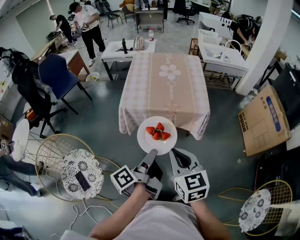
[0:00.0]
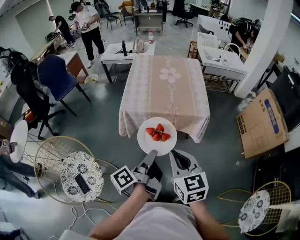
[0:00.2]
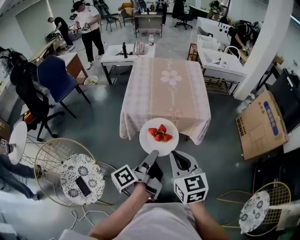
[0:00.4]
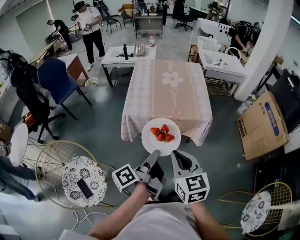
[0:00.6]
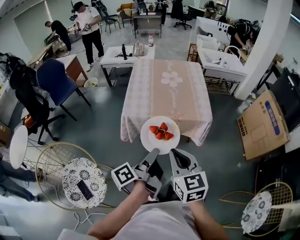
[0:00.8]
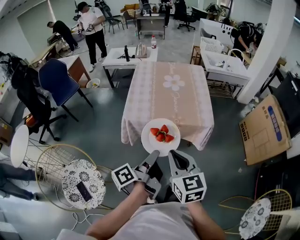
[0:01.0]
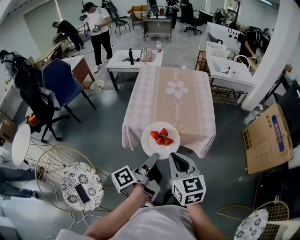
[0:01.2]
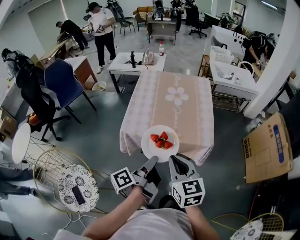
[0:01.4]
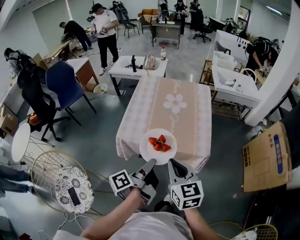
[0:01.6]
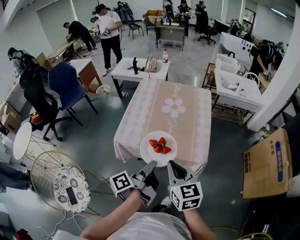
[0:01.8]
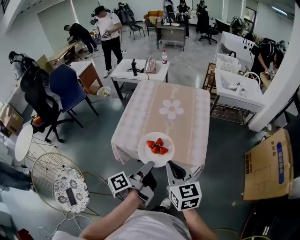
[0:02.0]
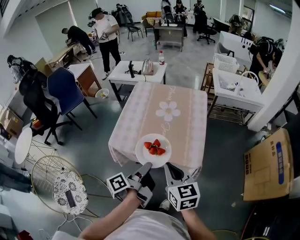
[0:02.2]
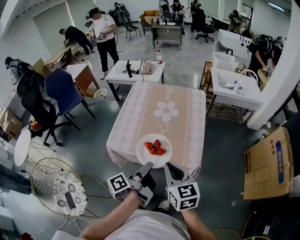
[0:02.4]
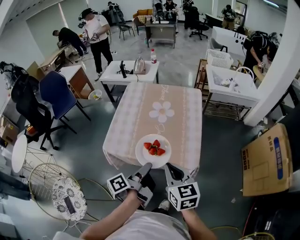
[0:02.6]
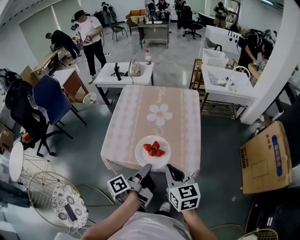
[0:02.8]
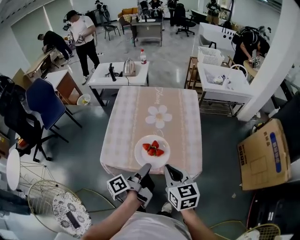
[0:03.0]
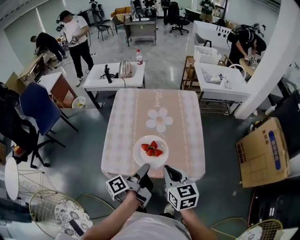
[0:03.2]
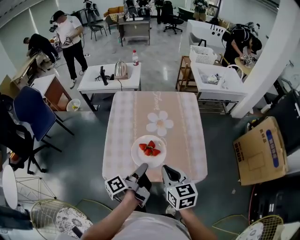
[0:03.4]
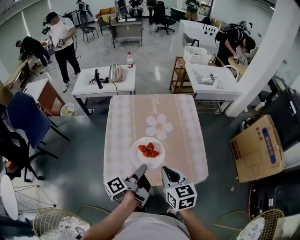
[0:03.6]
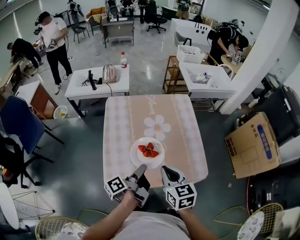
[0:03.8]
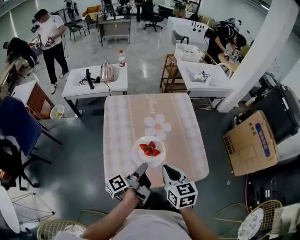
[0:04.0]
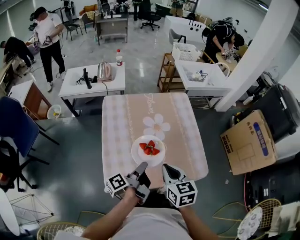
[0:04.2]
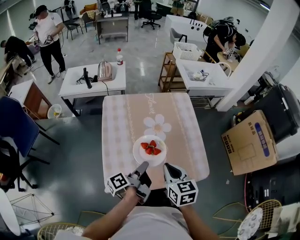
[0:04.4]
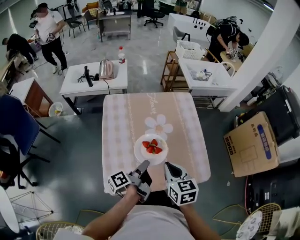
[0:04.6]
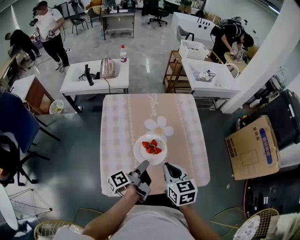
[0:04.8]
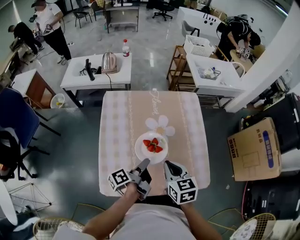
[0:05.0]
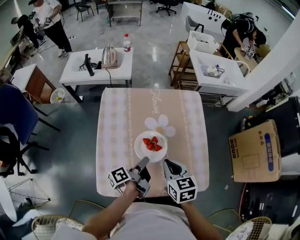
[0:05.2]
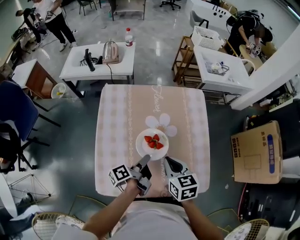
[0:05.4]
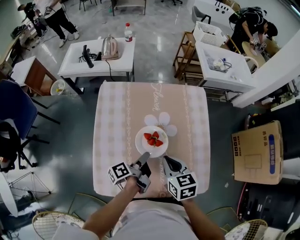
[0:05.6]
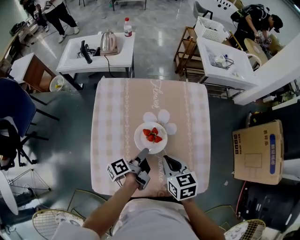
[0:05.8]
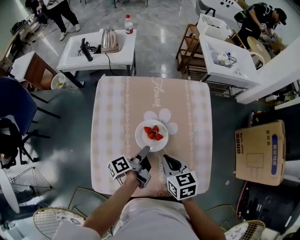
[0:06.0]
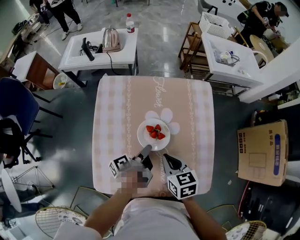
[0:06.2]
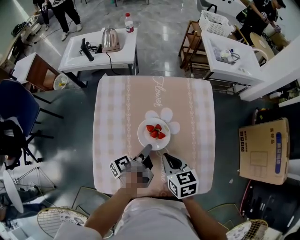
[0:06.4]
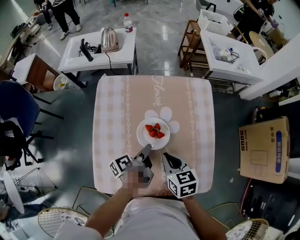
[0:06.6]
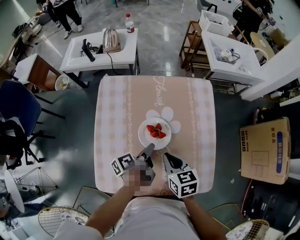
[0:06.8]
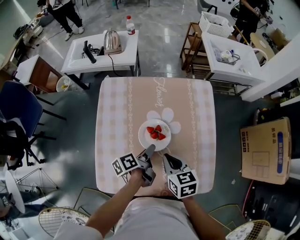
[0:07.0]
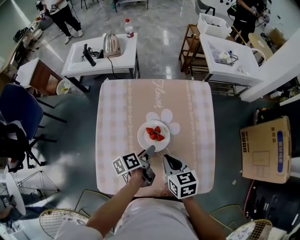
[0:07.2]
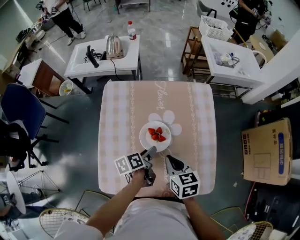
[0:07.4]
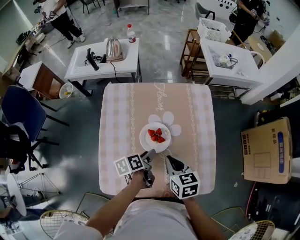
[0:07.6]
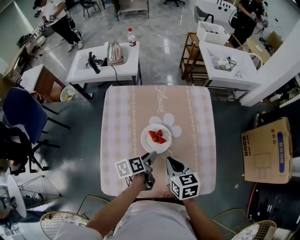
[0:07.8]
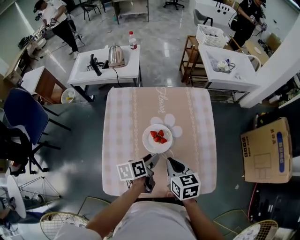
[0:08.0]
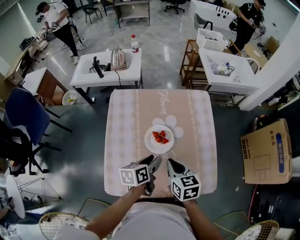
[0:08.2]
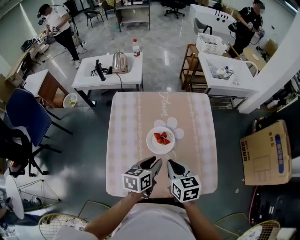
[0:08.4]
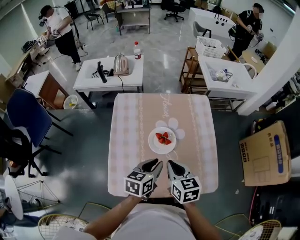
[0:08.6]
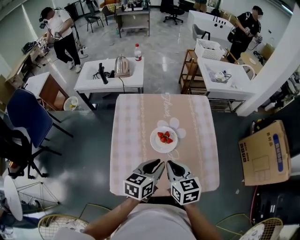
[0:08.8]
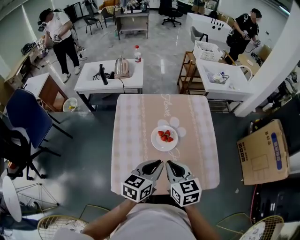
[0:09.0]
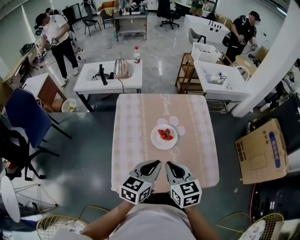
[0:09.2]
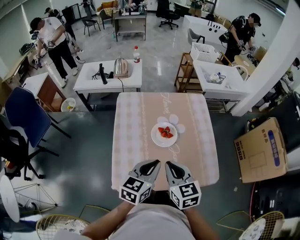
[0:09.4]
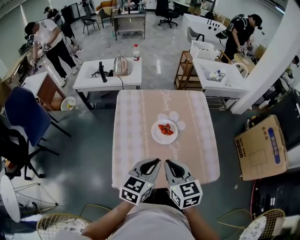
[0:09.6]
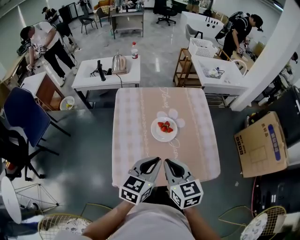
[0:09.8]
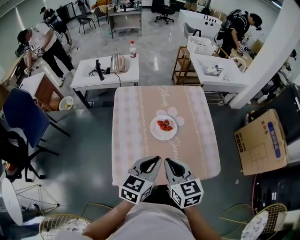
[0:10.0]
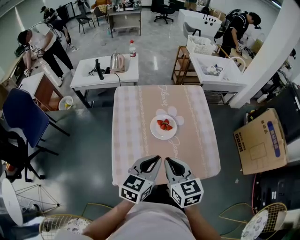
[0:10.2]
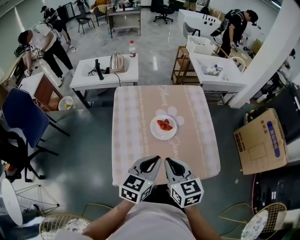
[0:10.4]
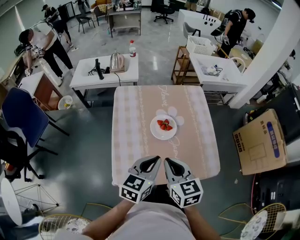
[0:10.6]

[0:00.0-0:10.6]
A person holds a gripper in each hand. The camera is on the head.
0.0 to 1.6 s: The right gripper moves about 20 cm.
1.6 to 3.0 s: The right gripper moves some 15 cm.
3.0 to 4.6 s: The right gripper shifts by approximately 15 cm.
4.6 to 6.0 s: The right gripper shifts by approximately 15 cm.
7.6 to 9.0 s: The right gripper changes place by roughly 10 cm.
9.0 to 10.6 s: The right gripper moves some 5 cm.

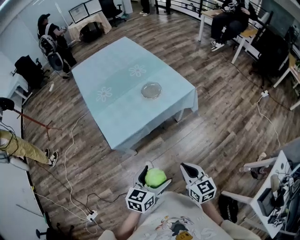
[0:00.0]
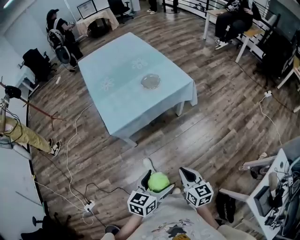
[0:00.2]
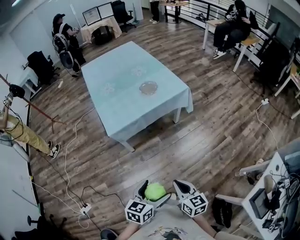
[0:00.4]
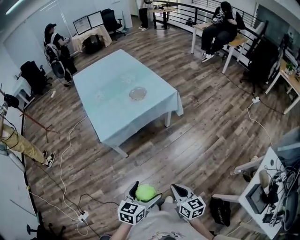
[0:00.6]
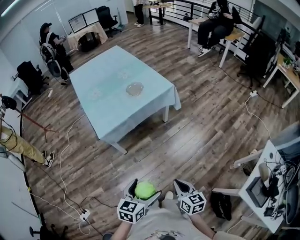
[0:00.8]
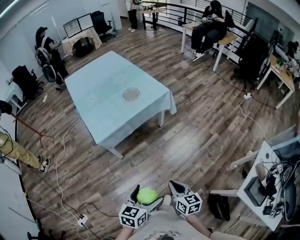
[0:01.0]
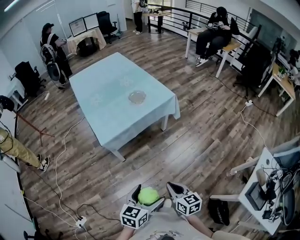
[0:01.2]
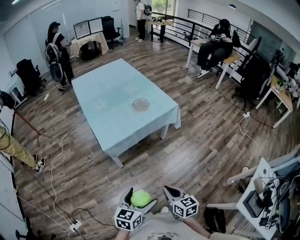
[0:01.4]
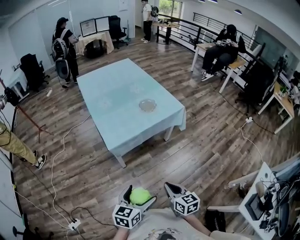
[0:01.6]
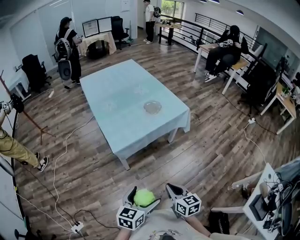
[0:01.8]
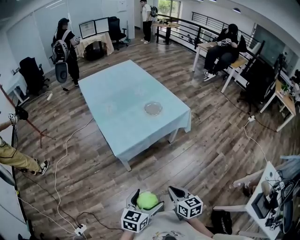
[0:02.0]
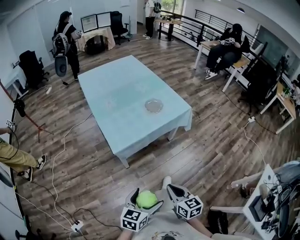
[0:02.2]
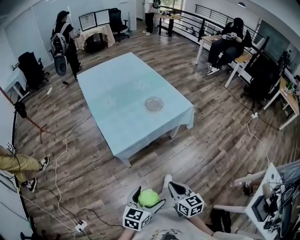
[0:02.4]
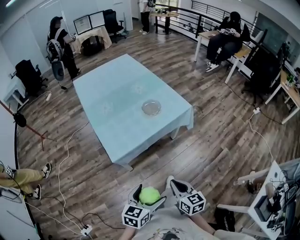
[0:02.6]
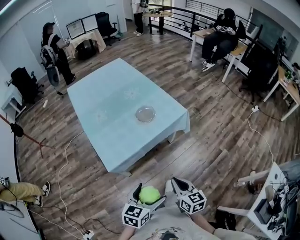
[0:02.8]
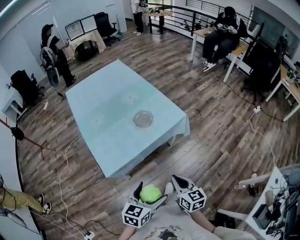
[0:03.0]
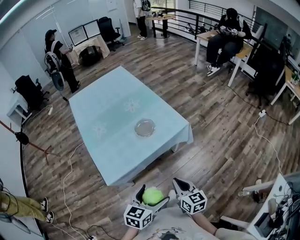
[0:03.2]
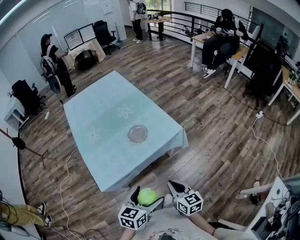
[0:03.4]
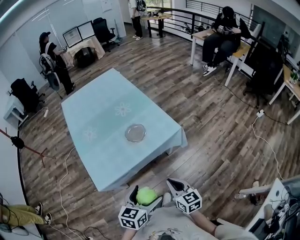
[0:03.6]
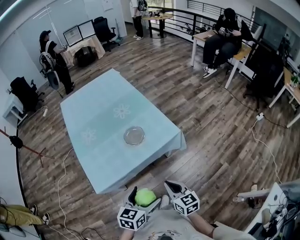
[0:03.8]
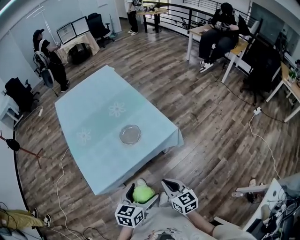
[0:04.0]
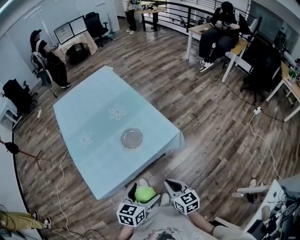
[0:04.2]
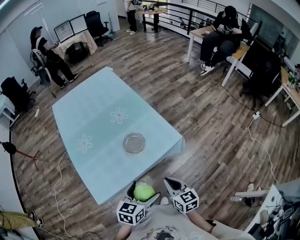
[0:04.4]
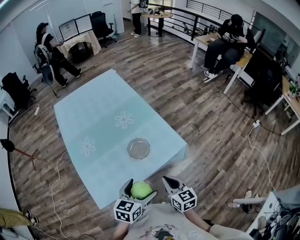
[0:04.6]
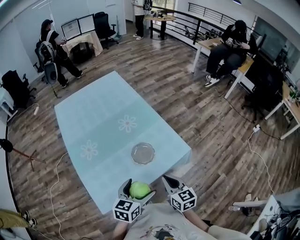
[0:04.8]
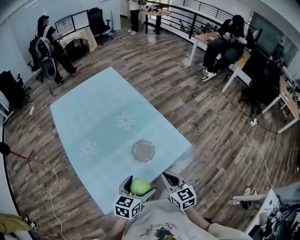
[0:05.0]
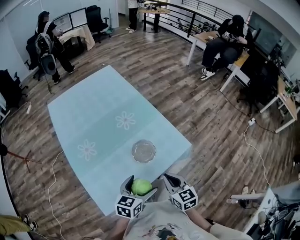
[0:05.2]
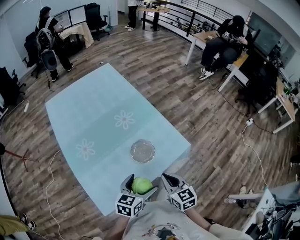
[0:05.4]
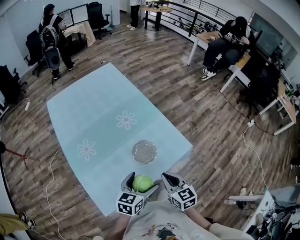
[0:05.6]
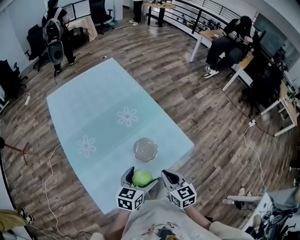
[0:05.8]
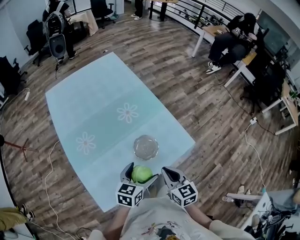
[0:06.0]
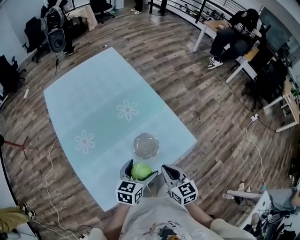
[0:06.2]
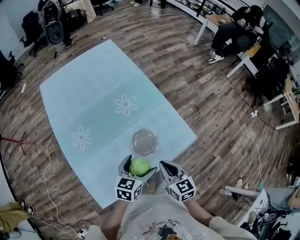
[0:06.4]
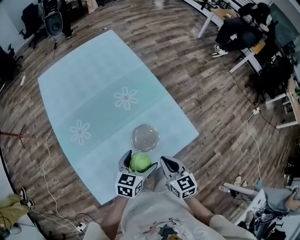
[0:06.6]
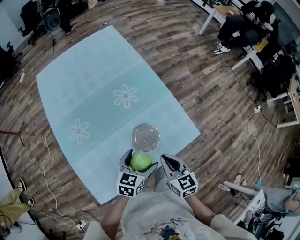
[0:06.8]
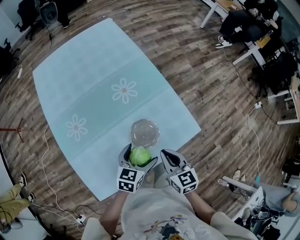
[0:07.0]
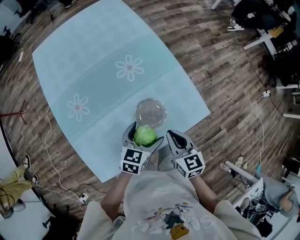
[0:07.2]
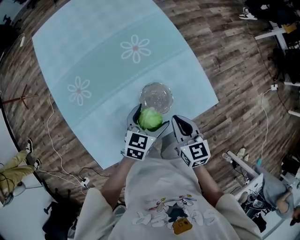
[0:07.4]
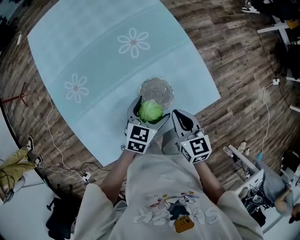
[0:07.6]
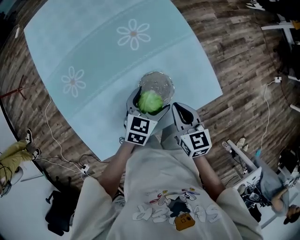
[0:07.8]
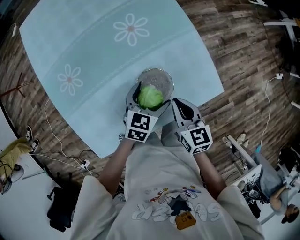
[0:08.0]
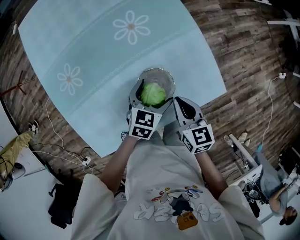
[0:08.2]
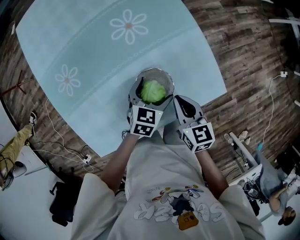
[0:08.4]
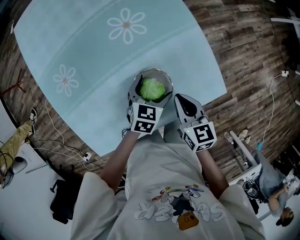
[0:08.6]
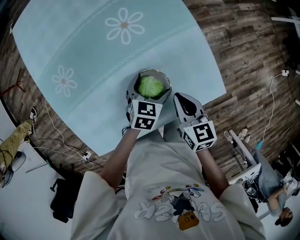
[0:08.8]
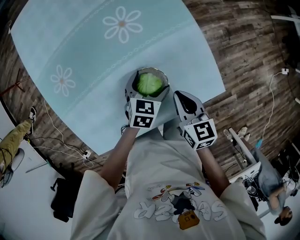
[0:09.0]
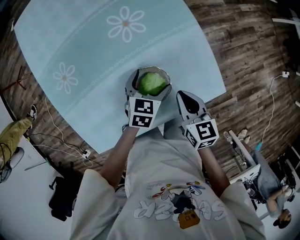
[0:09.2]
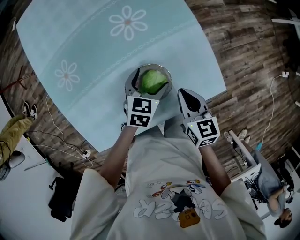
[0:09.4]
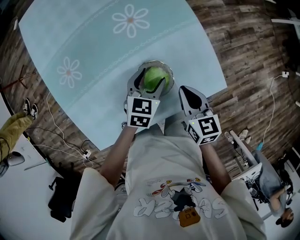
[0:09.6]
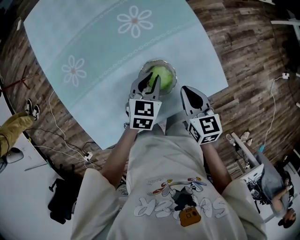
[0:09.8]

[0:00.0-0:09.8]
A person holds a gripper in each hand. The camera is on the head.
0.0 to 1.4 s: The grippers both shift backward by some 15 cm.
1.4 to 2.8 s: Both grippers travel together forward, about 20 cm.
2.8 to 4.2 s: The two grippers go about 20 cm forward.
4.2 to 5.6 s: Both grippers travel together forward and to the left, about 20 cm.
5.6 to 7.0 s: The two grippers go approximately 10 cm forward and downward.
7.0 to 8.4 s: Both grippers travel together downward and forward, some 15 cm.
8.4 to 9.8 s: The left gripper ends up about 5 cm from where it was, and closes up.

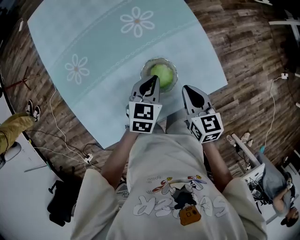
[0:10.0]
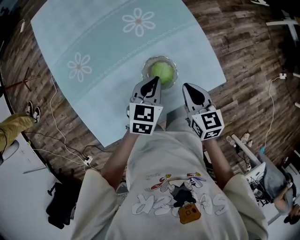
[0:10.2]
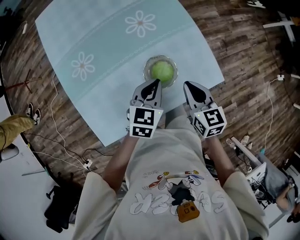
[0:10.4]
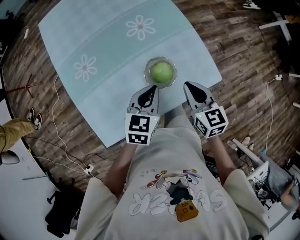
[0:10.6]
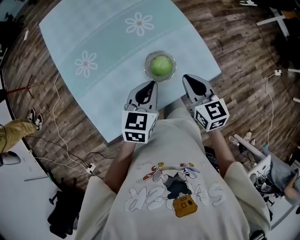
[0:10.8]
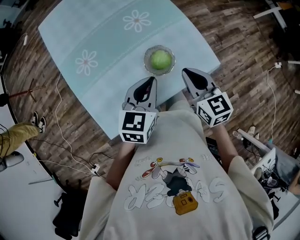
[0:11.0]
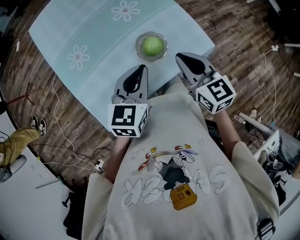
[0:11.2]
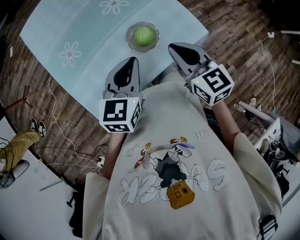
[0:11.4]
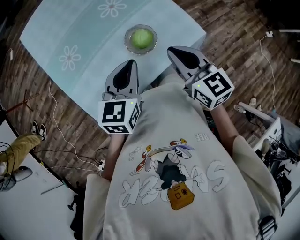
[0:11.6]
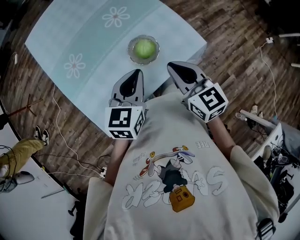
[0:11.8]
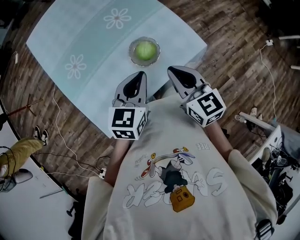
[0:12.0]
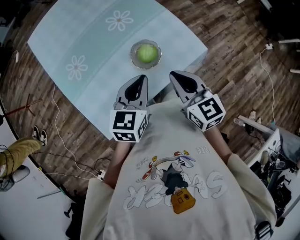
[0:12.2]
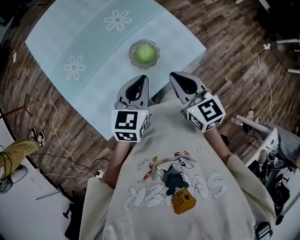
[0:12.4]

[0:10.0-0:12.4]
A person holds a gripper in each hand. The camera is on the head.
10.0 to 11.2 s: Both grippers move upward and backward, roughly 15 cm.
11.2 to 12.4 s: The grippers stay close to where they were, moving slightly.

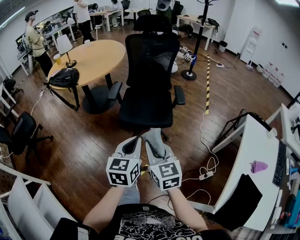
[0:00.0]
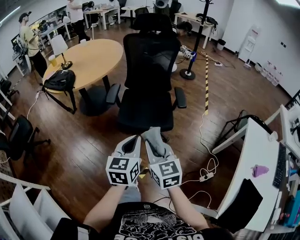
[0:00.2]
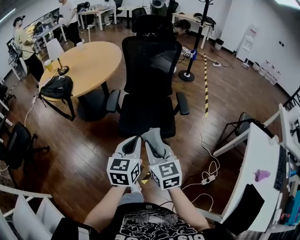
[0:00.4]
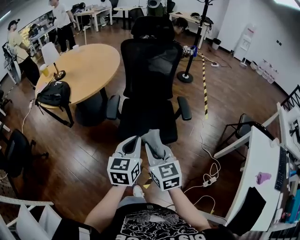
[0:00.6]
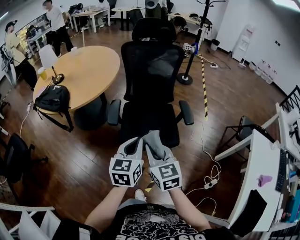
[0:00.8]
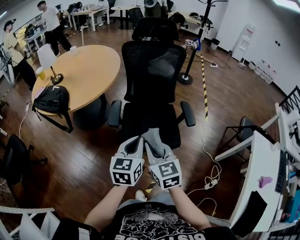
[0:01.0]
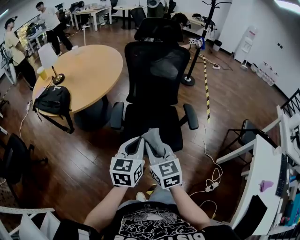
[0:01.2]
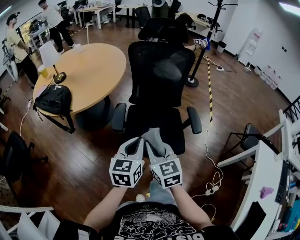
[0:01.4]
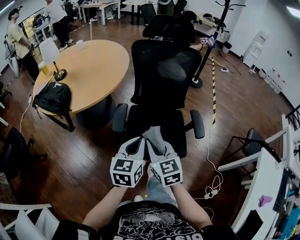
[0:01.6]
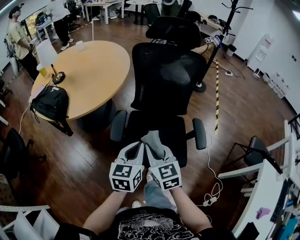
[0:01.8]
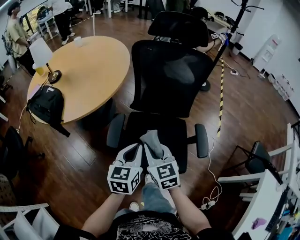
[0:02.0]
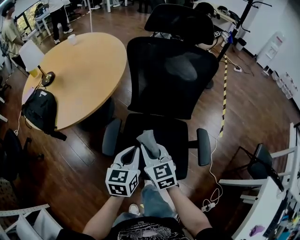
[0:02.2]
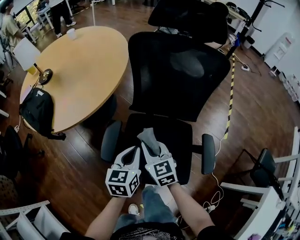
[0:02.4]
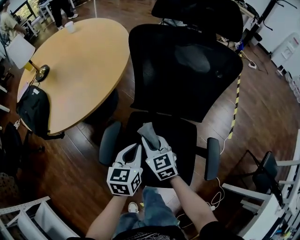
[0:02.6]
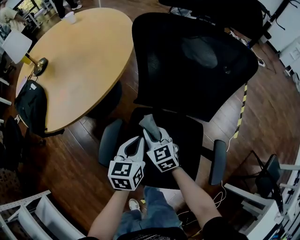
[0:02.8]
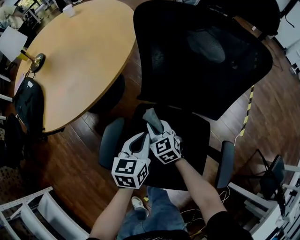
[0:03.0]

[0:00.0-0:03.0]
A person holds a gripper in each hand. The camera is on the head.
0.0 to 1.6 s: Both grippers travel together forward, roughly 35 cm.
1.6 to 3.0 s: Both grippers travel together forward and downward, about 40 cm. The right gripper changes its angle by approximately 30 degrees; the left gripper rotates approximately 20 degrees.
